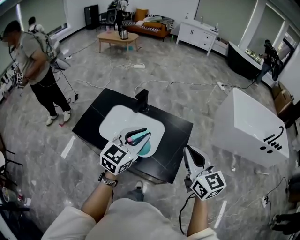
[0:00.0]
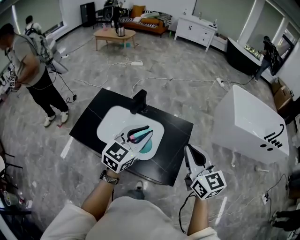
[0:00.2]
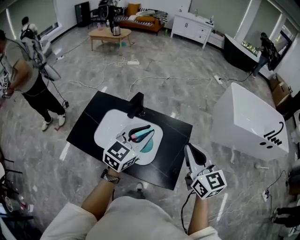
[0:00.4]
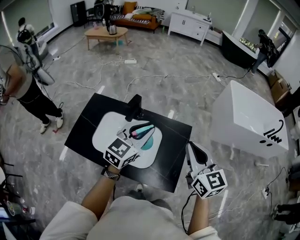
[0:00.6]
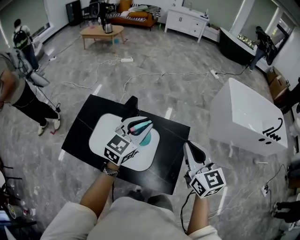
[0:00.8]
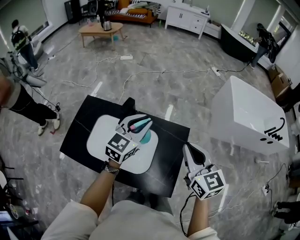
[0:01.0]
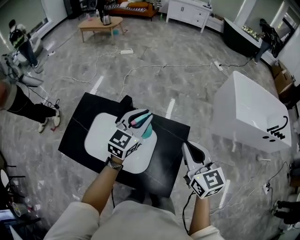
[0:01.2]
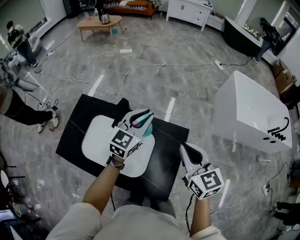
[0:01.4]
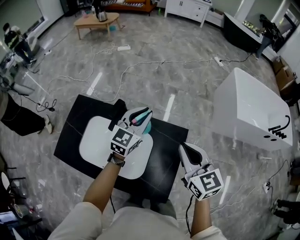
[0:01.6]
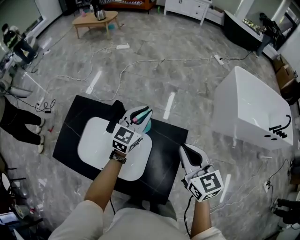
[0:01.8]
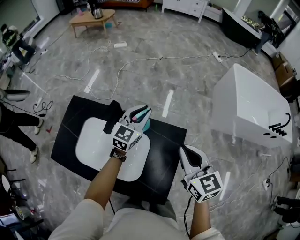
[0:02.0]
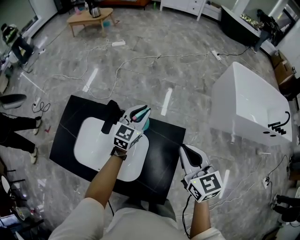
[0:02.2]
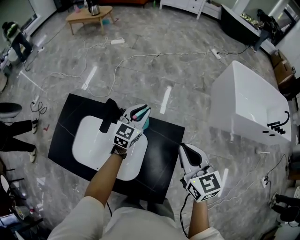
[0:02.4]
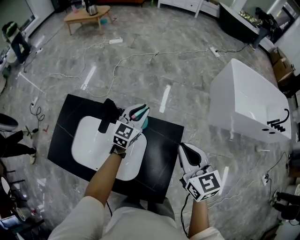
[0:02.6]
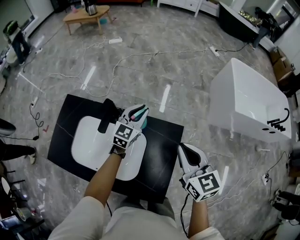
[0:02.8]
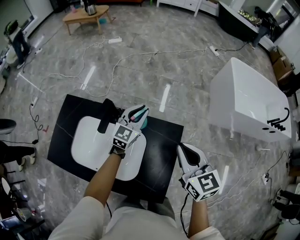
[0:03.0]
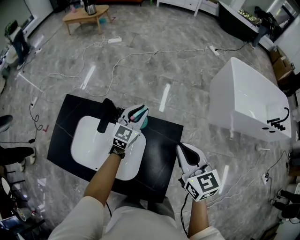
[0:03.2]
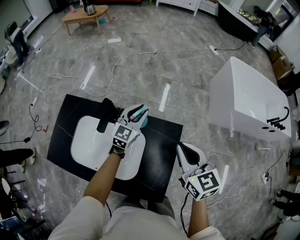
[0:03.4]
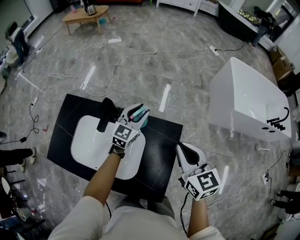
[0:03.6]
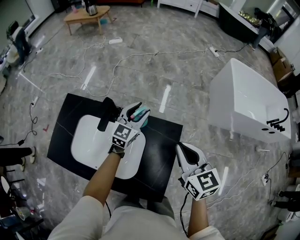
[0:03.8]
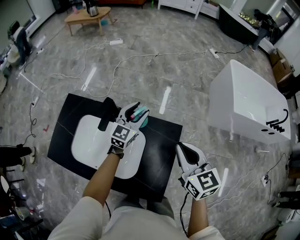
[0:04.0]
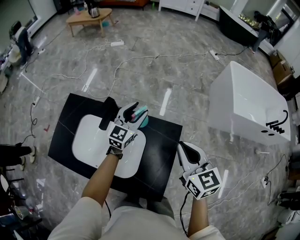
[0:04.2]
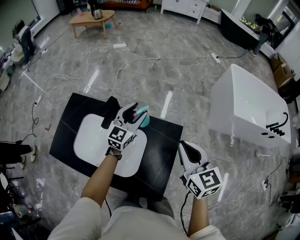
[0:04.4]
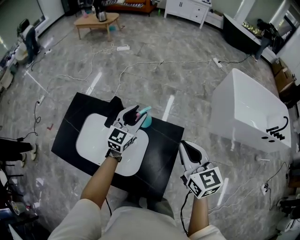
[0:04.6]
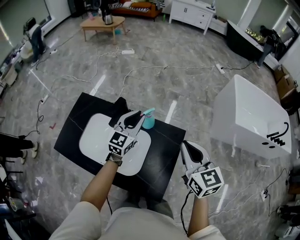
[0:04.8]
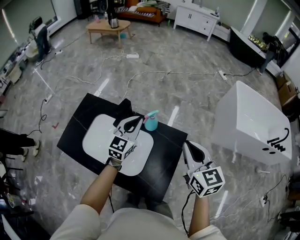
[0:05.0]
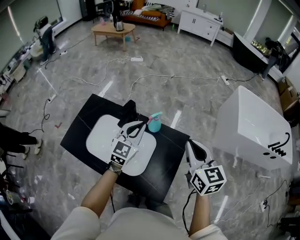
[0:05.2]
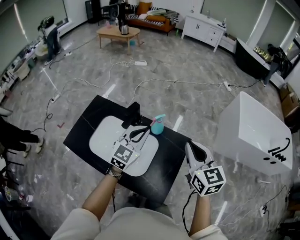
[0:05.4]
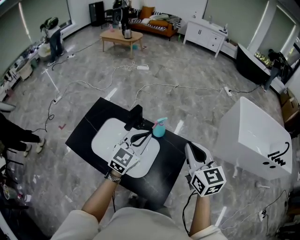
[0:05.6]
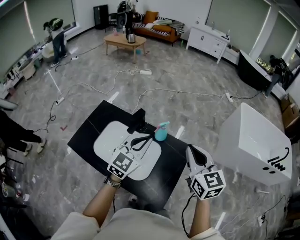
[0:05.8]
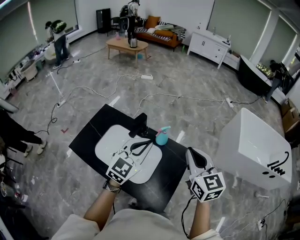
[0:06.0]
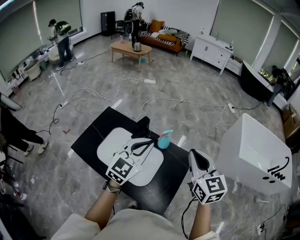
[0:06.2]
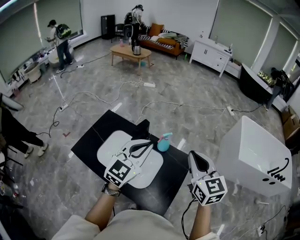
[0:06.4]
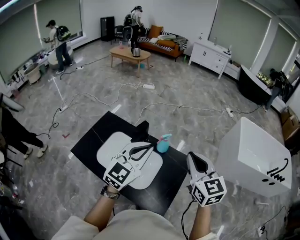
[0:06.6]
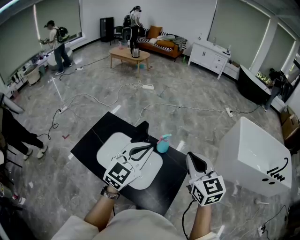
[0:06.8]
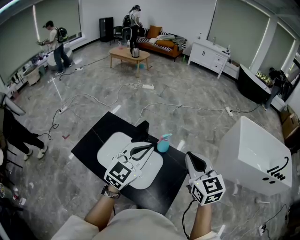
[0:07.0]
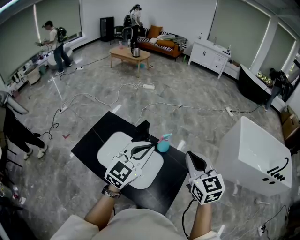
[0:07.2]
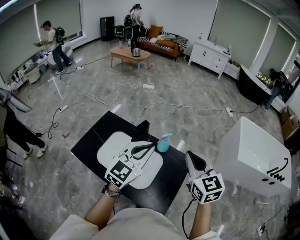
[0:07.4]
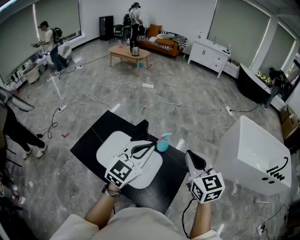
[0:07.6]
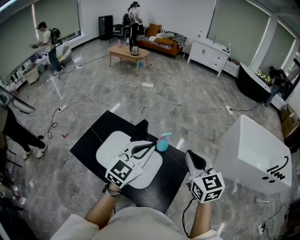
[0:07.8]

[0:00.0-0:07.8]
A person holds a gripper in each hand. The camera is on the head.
0:00.0 to 0:01.6: Both grippers travel together forward, about 25 cm.
0:01.6 to 0:03.2: The left gripper moves downward and forward, some 10 cm. Meanwhile the right gripper shifts by roughly 5 cm.
0:03.2 to 0:04.6: The left gripper is displaced upward by about 5 cm, and opens up.
0:04.6 to 0:06.2: The left gripper heads backward and upward, covering some 25 cm, and closes, while the right gripper goes roughly 10 cm upward and to the left.
0:06.2 to 0:07.8: There are only small adjustments of the grippers.

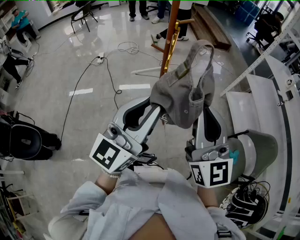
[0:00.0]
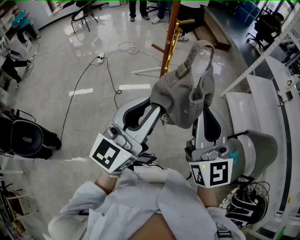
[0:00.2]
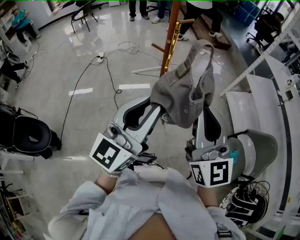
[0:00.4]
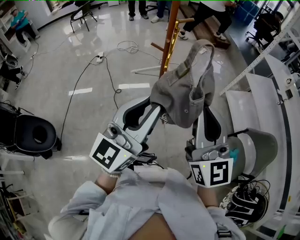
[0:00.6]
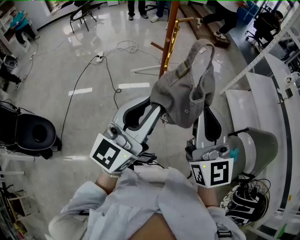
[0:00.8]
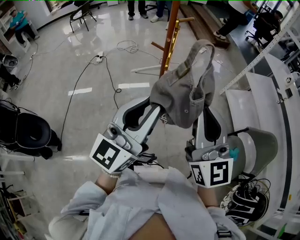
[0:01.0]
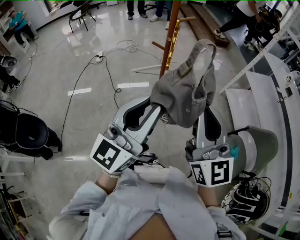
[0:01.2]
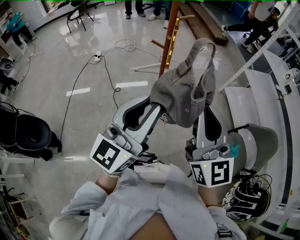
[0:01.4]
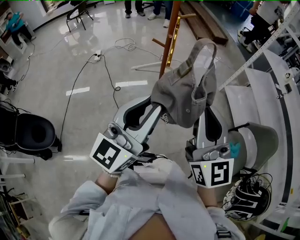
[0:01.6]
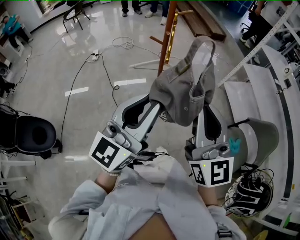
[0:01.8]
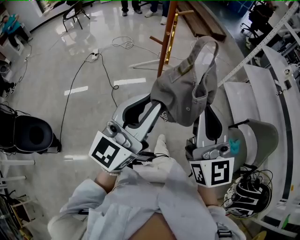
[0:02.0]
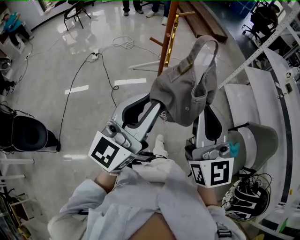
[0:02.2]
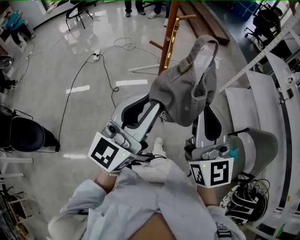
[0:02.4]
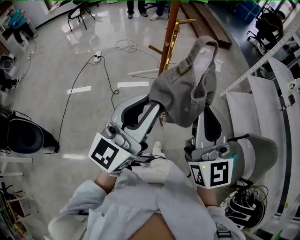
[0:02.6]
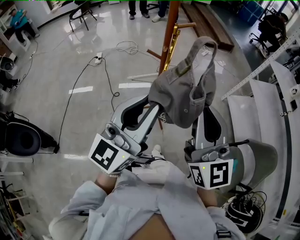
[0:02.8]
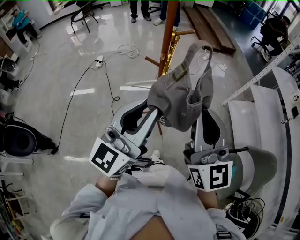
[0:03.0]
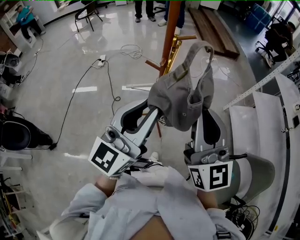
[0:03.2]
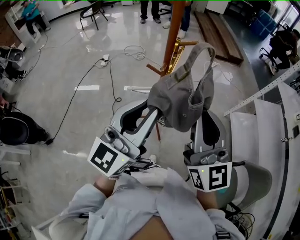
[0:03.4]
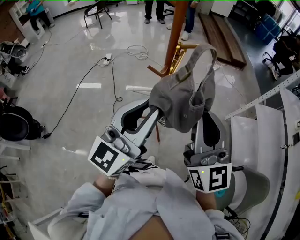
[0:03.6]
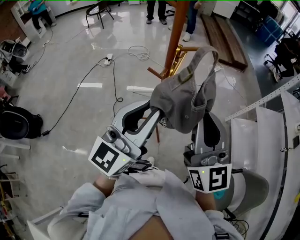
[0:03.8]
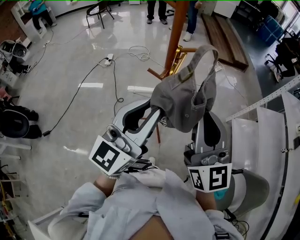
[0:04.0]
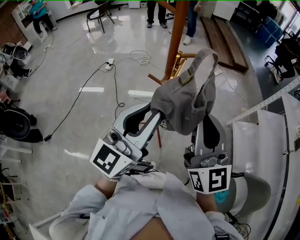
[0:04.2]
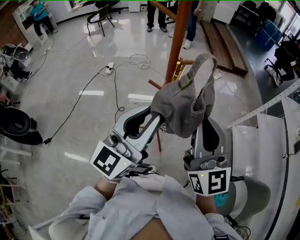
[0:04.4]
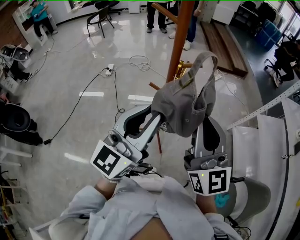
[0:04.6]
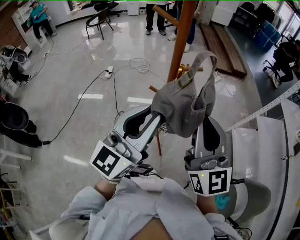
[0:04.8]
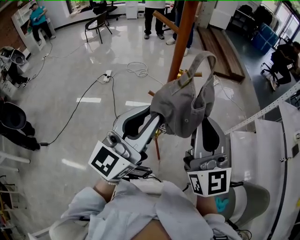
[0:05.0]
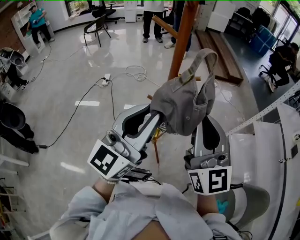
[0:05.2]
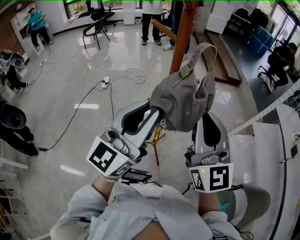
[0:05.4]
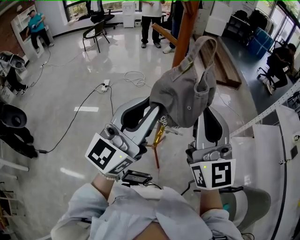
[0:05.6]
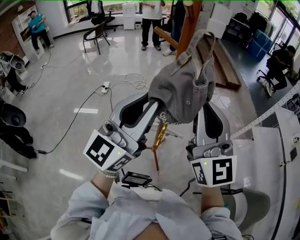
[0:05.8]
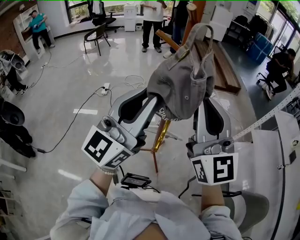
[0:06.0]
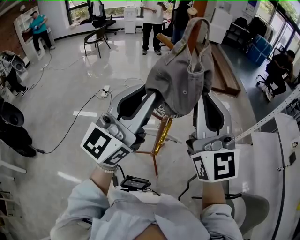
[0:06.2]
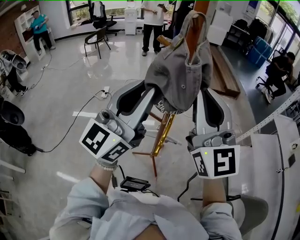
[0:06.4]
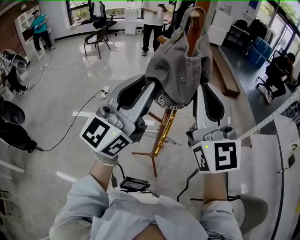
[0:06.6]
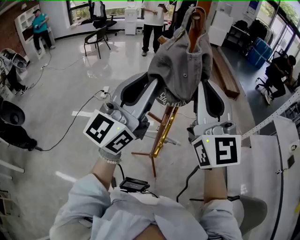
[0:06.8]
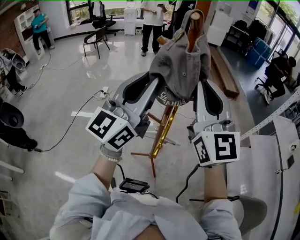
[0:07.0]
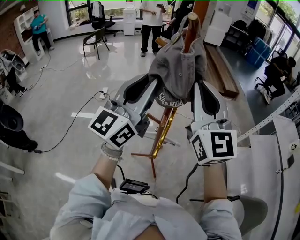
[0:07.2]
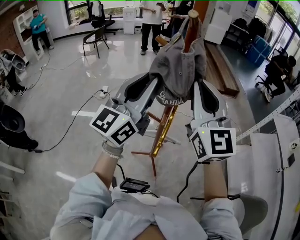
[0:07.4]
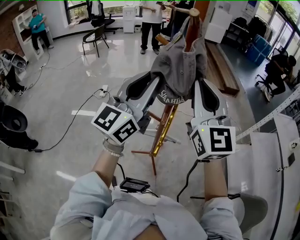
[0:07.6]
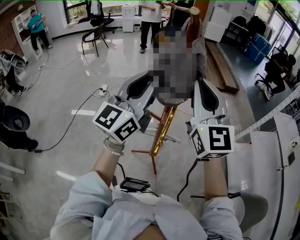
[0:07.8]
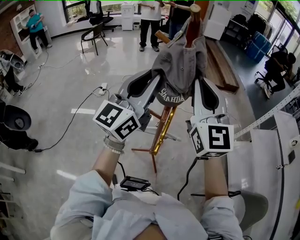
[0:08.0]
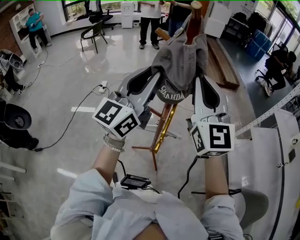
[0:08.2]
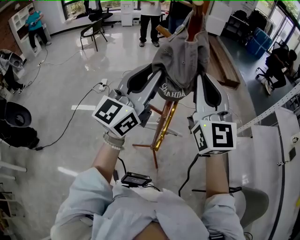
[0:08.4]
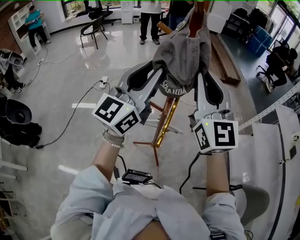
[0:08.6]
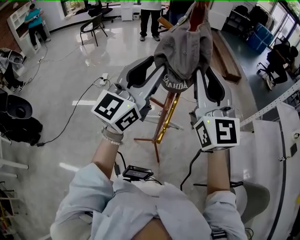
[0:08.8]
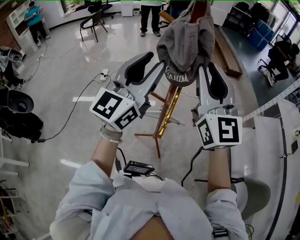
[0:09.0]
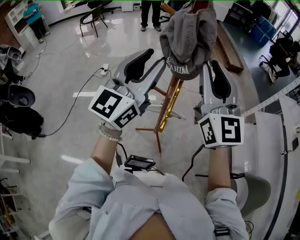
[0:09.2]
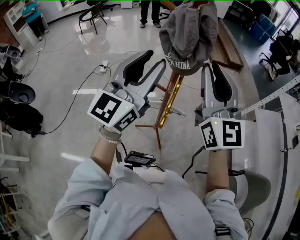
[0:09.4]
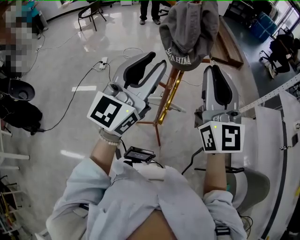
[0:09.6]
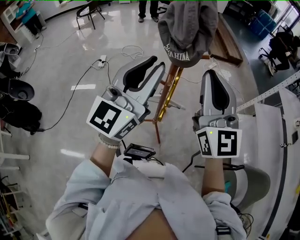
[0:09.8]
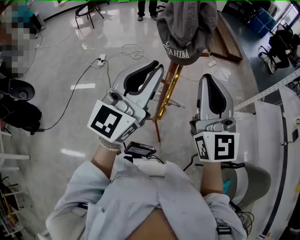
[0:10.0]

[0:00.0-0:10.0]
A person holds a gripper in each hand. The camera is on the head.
0:00.0 to 0:01.4: The grippers make only small movements.
0:01.4 to 0:02.8: Both grippers travel together forward, approximately 10 cm.
0:02.8 to 0:04.2: Both grippers move forward, some 10 cm.
0:04.2 to 0:05.8: The left gripper goes approximately 10 cm forward and upward. Meanwhile the right gripper heads upward and forward, covering approximately 10 cm.
0:05.8 to 0:07.2: The two grippers go roughly 10 cm forward.
0:07.2 to 0:08.6: There are only small adjustments of the grippers.
0:08.6 to 0:10.0: The right gripper travels backward and downward by about 10 cm; the left gripper shifts some 10 cm backward.

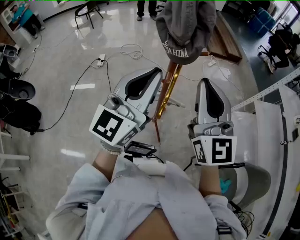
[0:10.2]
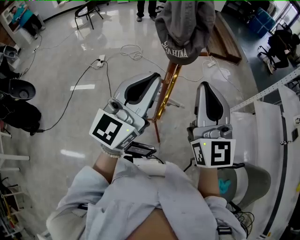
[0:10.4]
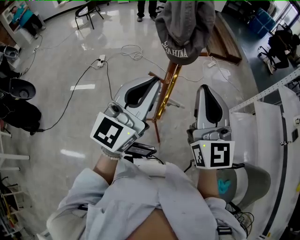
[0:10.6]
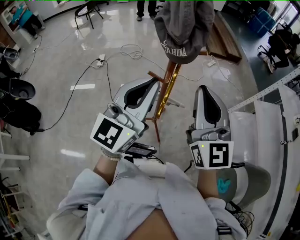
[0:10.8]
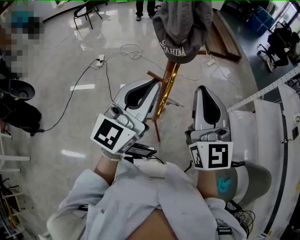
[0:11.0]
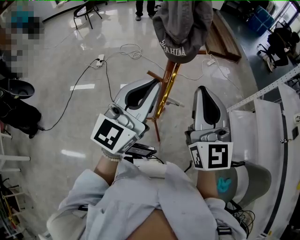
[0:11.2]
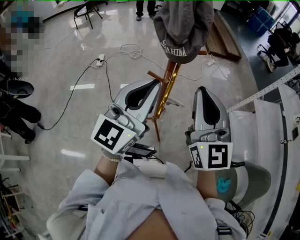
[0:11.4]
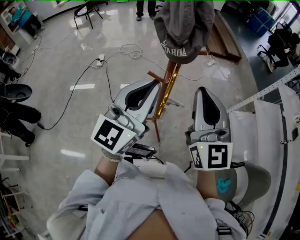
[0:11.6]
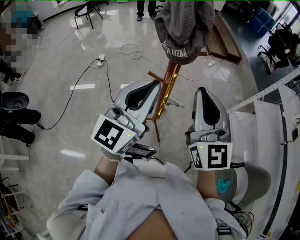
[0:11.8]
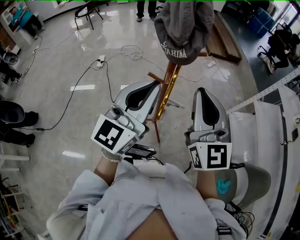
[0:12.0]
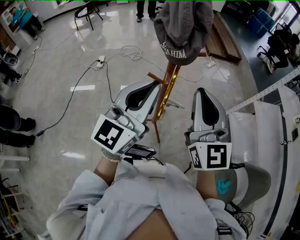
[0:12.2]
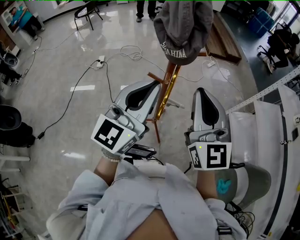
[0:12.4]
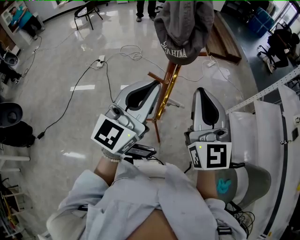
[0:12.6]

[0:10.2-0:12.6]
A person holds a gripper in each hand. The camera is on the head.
0:10.2 to 0:11.4: The grippers move only a little.
0:11.4 to 0:12.6: Both grippers stay put.

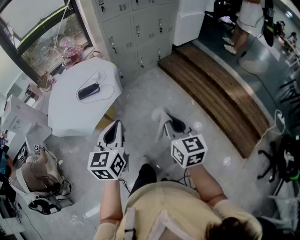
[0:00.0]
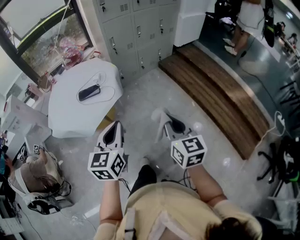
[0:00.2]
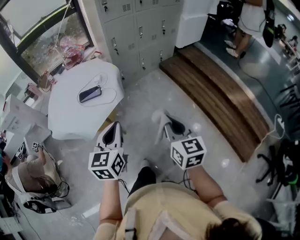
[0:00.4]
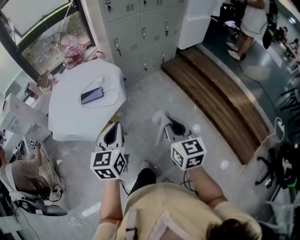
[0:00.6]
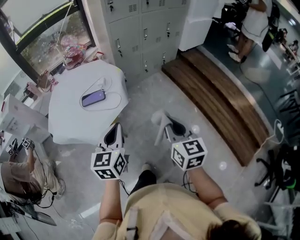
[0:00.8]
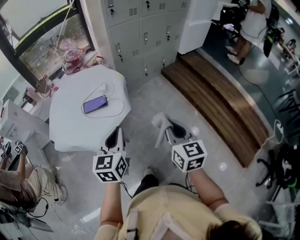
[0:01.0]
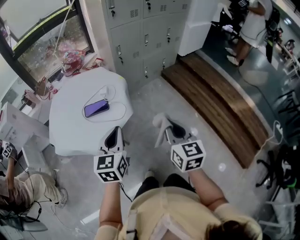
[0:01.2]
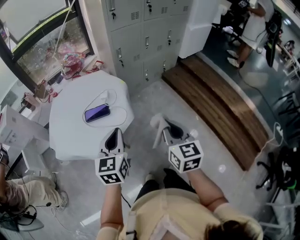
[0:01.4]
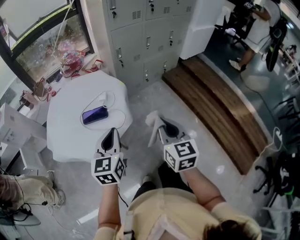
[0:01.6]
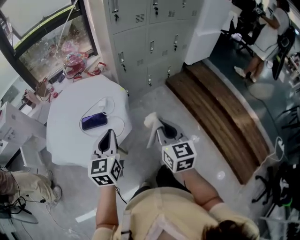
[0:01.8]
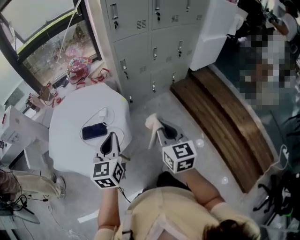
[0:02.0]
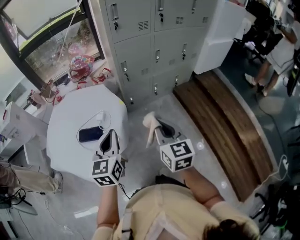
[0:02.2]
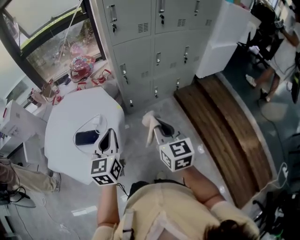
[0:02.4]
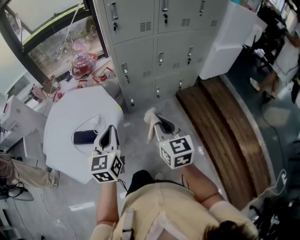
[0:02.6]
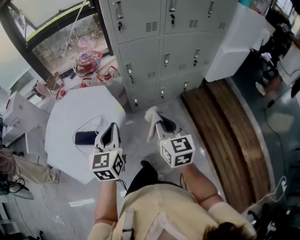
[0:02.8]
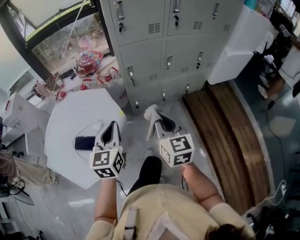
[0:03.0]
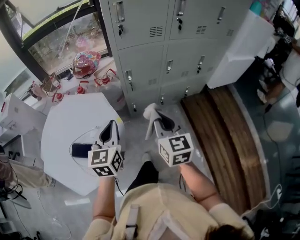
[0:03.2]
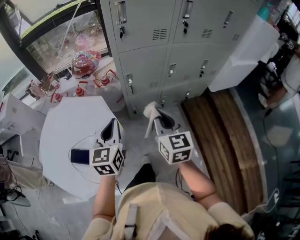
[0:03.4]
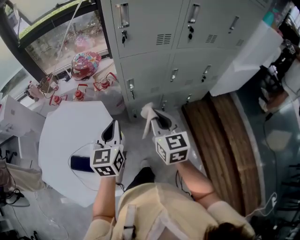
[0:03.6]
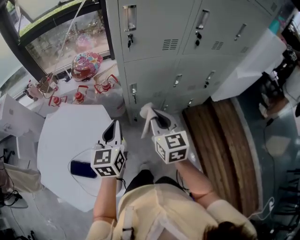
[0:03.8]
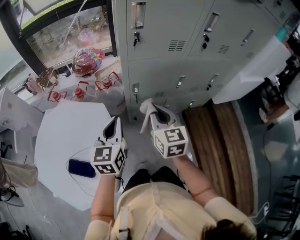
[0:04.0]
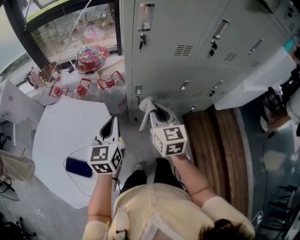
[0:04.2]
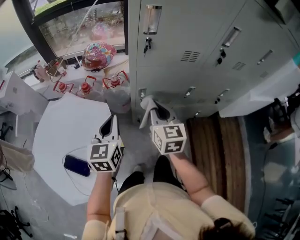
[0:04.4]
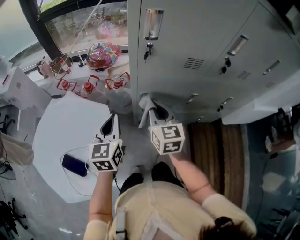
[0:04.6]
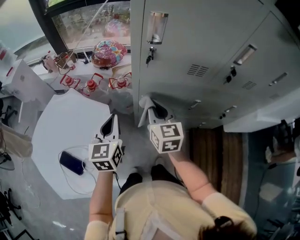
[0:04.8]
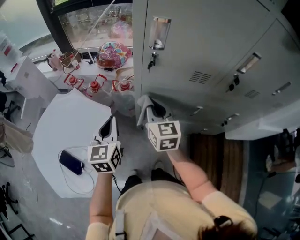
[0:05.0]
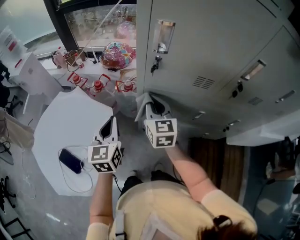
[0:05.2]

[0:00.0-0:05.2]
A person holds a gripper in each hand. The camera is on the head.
0:00.0 to 0:01.8: The left gripper travels forward and to the left by about 25 cm; the right gripper shifts roughly 25 cm forward.
0:01.8 to 0:03.4: The left gripper moves forward and to the right, roughly 30 cm. Meanwhile the right gripper moves forward, approximately 35 cm.
0:03.4 to 0:05.2: The left gripper heads forward, covering some 15 cm, and swivels about 30 degrees, while the right gripper heads forward, covering some 30 cm, and changes its angle by roughly 20 degrees.
